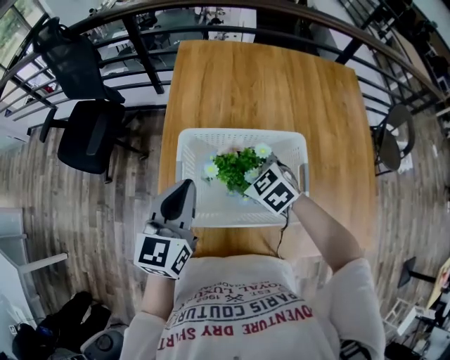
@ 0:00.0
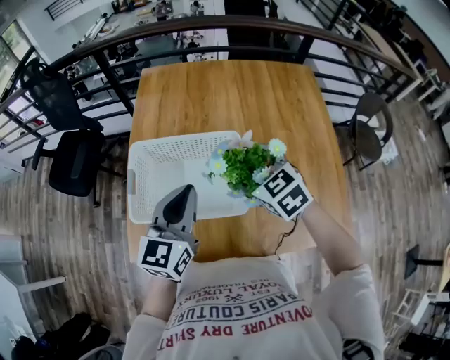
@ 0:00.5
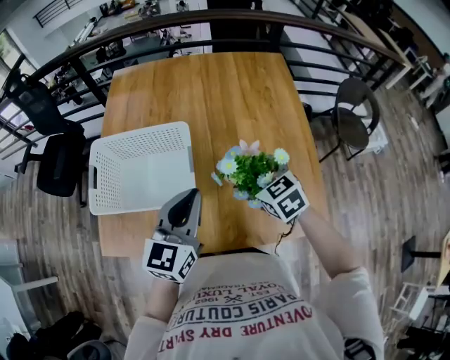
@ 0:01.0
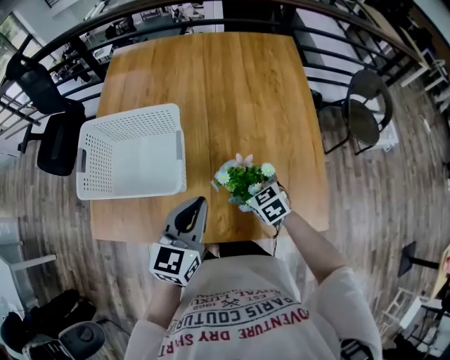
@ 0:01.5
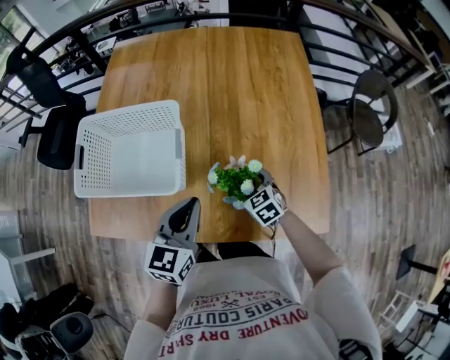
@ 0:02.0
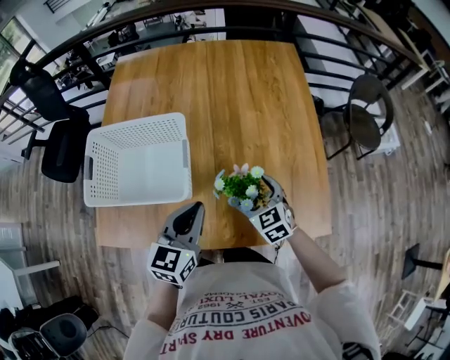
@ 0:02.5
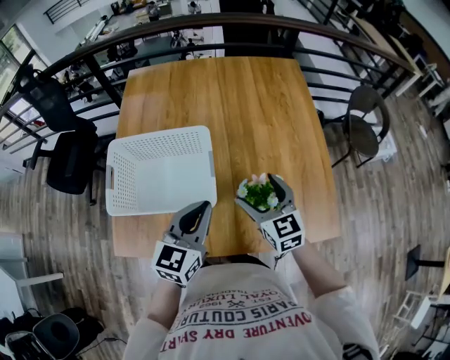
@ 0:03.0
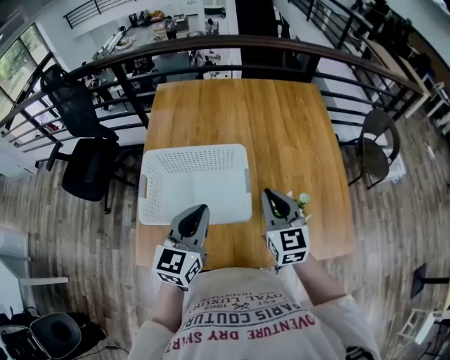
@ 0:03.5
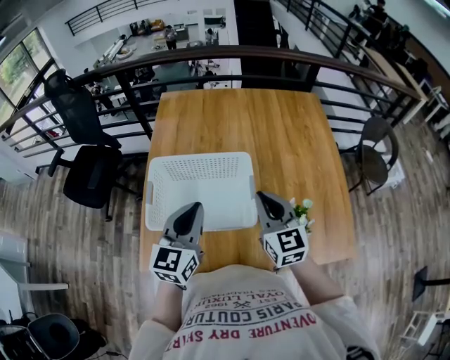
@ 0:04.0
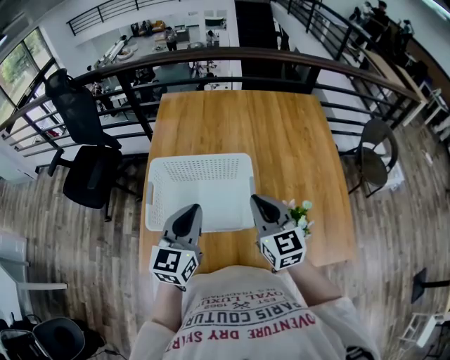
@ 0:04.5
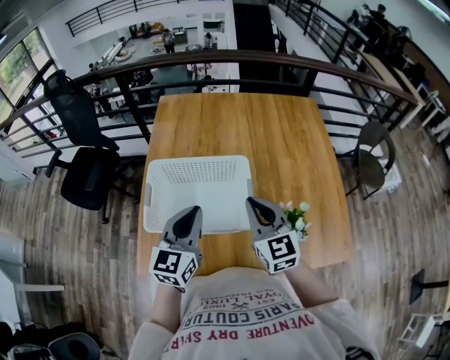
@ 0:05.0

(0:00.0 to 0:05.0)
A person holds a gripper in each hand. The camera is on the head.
0:00.0 - 0:02.5: Both grippers travel together to the right and backward, roughly 35 cm. The right gripper turns by some 20 degrees.
0:02.5 - 0:05.0: The left gripper shifts about 20 cm to the left and upward. Meanwhile the right gripper shifts approximately 30 cm upward and to the left, changes its angle by some 30 degrees, and closes.

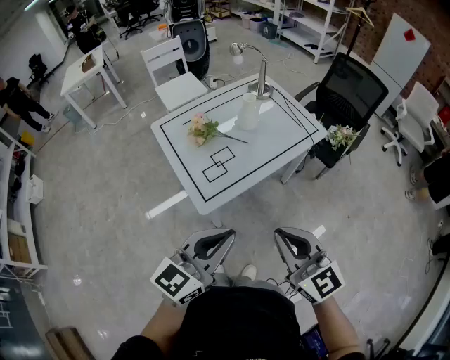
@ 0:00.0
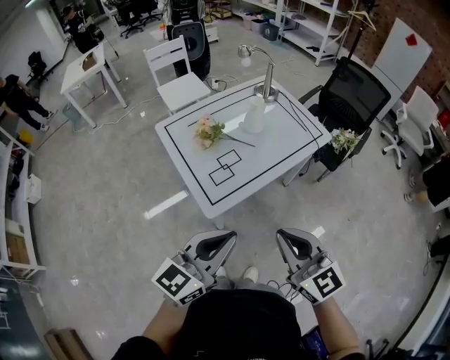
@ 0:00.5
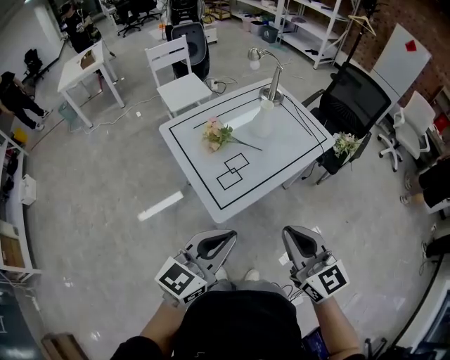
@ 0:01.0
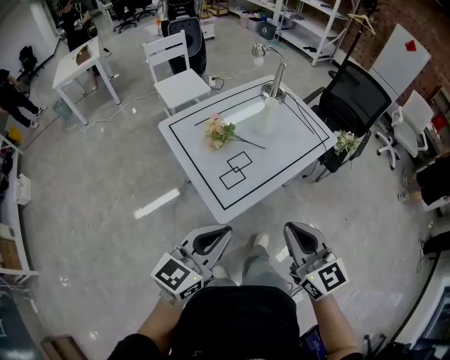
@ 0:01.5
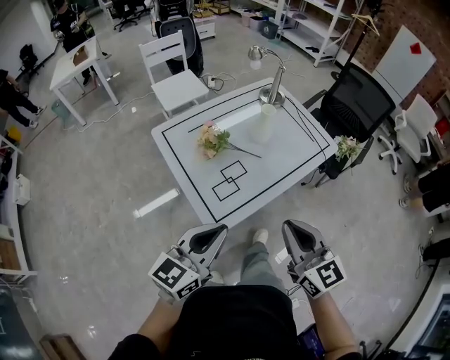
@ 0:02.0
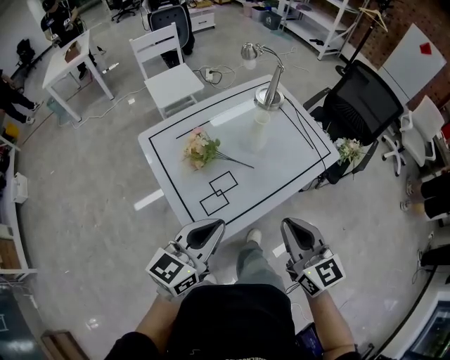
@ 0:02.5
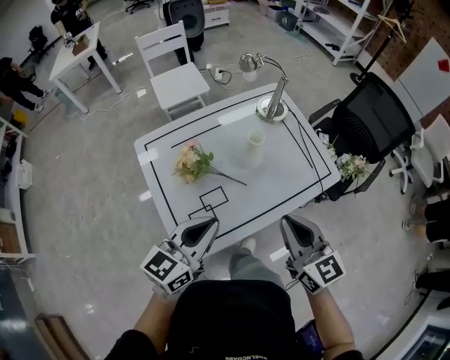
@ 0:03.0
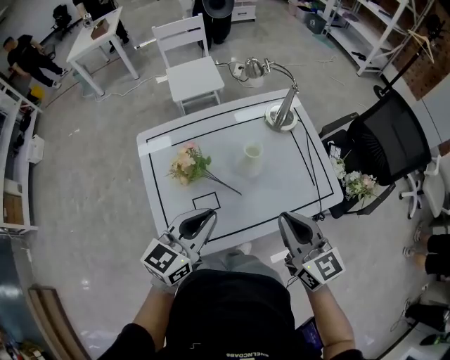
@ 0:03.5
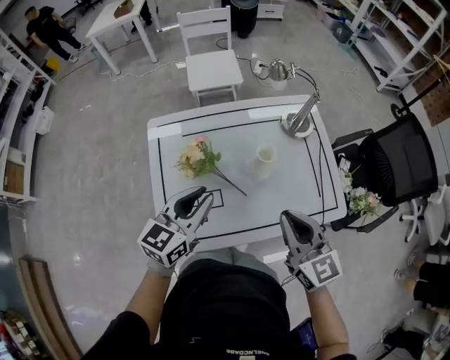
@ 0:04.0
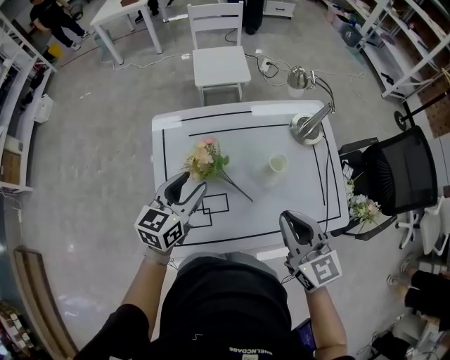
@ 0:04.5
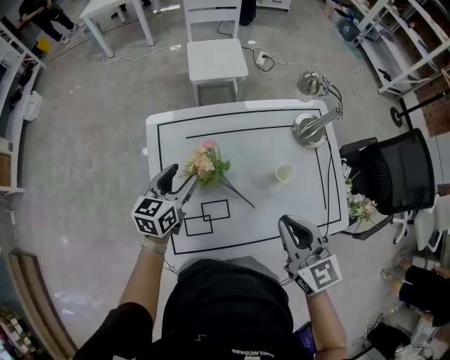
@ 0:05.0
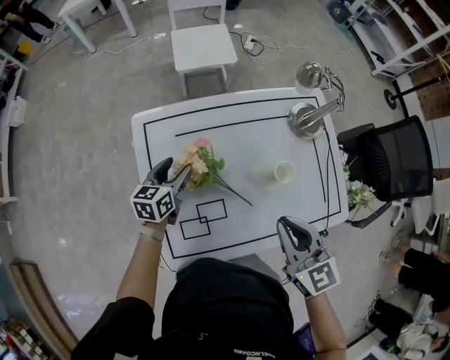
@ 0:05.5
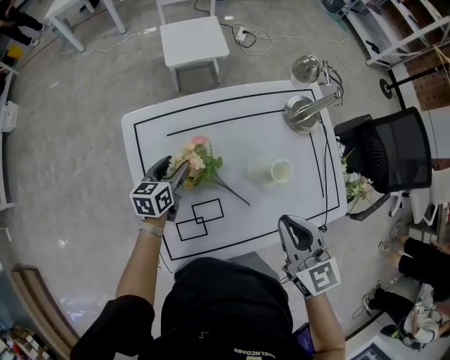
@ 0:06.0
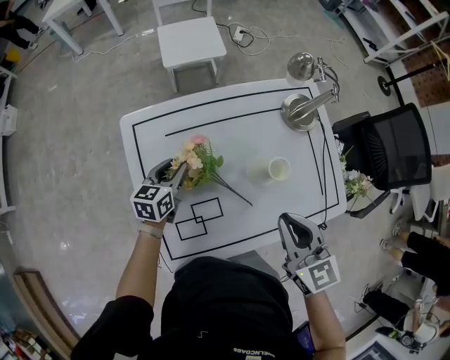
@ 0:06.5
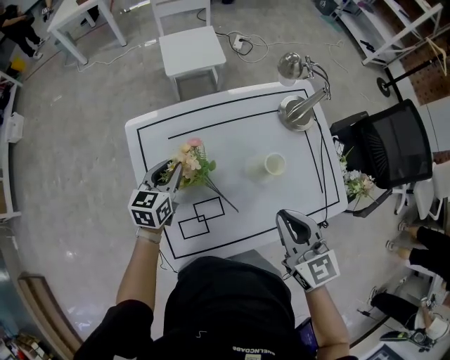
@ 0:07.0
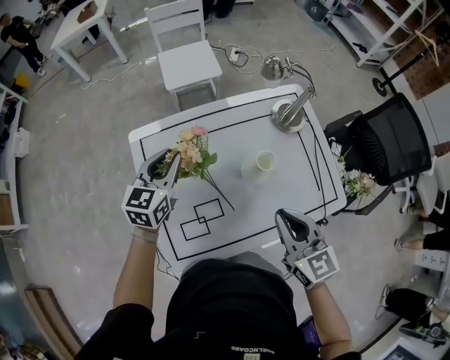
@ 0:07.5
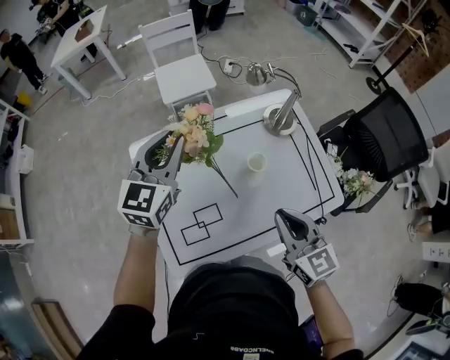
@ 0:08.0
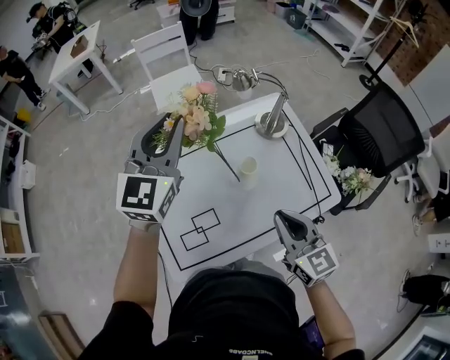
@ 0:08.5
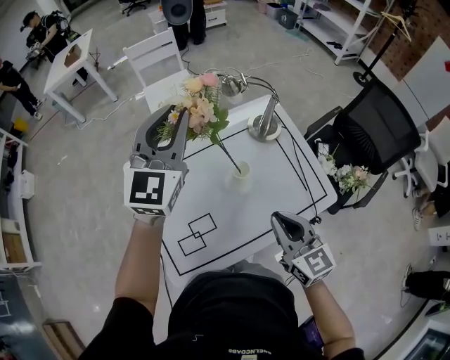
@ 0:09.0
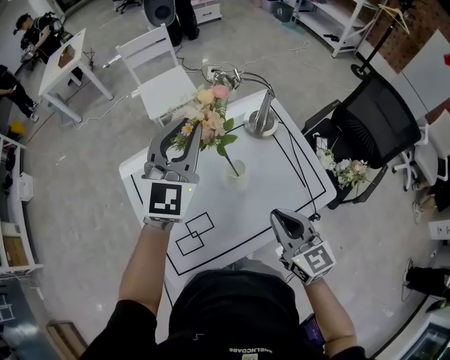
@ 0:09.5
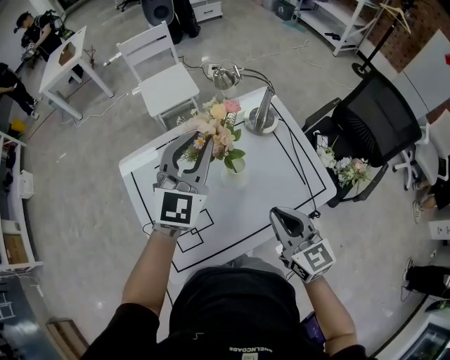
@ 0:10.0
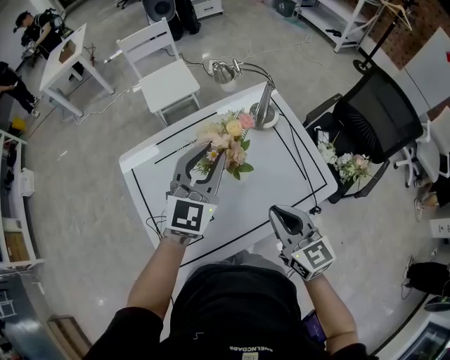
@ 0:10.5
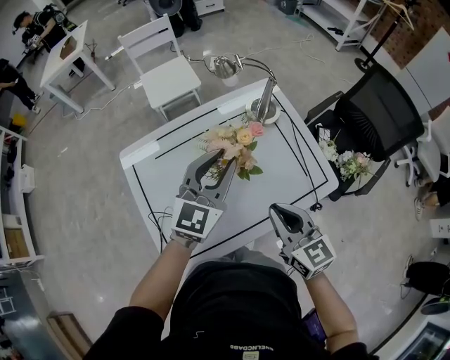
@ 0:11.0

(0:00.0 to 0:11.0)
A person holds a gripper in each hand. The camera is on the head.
0:00.0 - 0:02.0: The left gripper goes some 15 cm to the left, forward and downward. Meanwhile the right gripper moves forward and to the left, some 15 cm.
0:02.0 - 0:03.5: The grippers both shift forward and to the right by some 30 cm.
0:03.5 - 0:05.5: The right gripper goes some 10 cm forward and to the left. Meanwhile the left gripper shifts some 35 cm forward, downward and to the left, rotates approximately 30 degrees, and opens up.
0:05.5 - 0:07.5: The left gripper shifts about 15 cm upward, rotates roughly 20 degrees, and closes up.
0:07.5 - 0:09.0: The right gripper changes place by about 5 cm. Meanwhile the left gripper goes some 25 cm upward and to the right, and changes its angle by roughly 30 degrees.
0:09.0 - 0:11.0: The left gripper goes approximately 20 cm downward, backward and to the right.

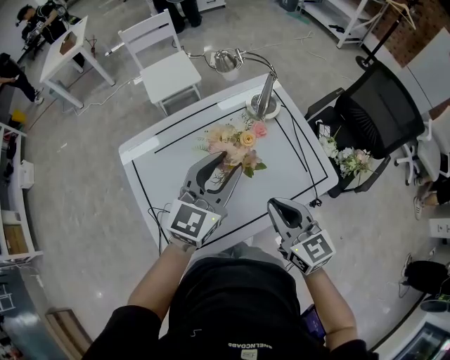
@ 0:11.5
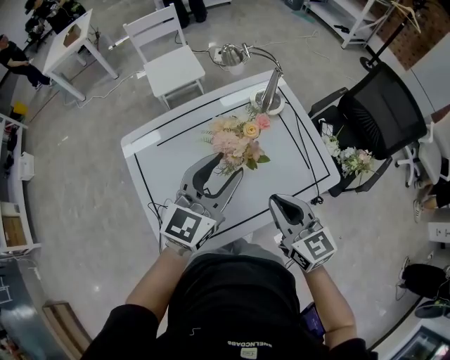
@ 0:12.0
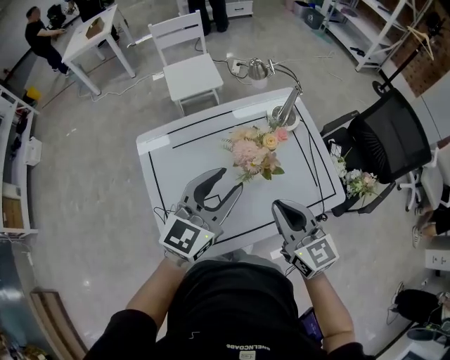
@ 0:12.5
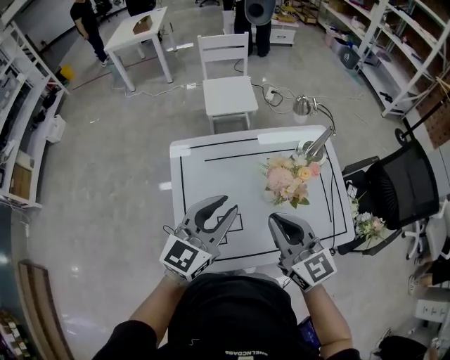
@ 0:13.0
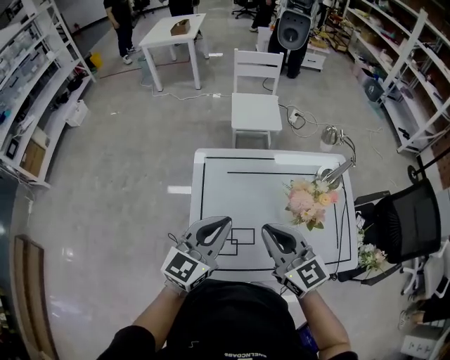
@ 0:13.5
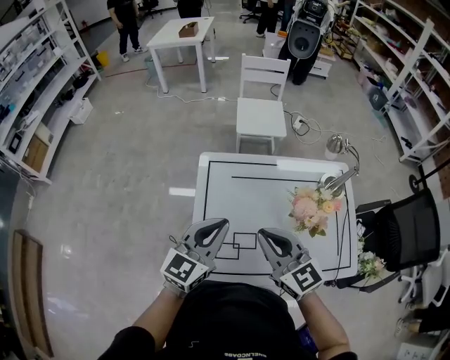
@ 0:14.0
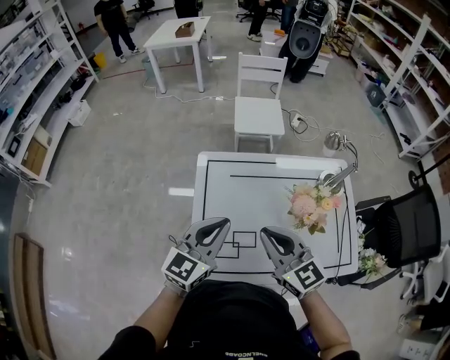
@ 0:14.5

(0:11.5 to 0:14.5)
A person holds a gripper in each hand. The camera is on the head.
0:11.5 - 0:13.0: The right gripper travels to the left and upward by some 15 cm, and rotates roughly 20 degrees. Meanwhile the left gripper shifts approximately 15 cm to the left and backward.
0:13.0 - 0:14.5: Both grippers travel together to the left, about 10 cm. The left gripper closes up.

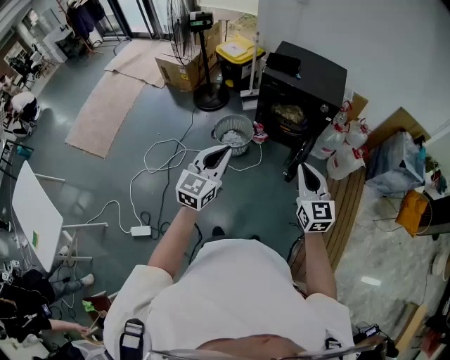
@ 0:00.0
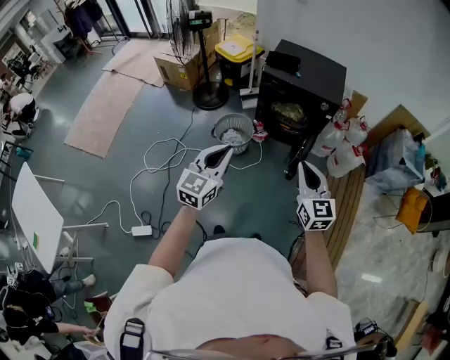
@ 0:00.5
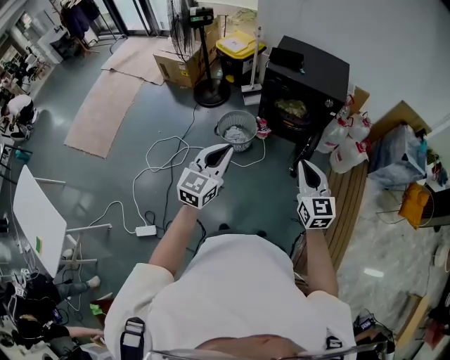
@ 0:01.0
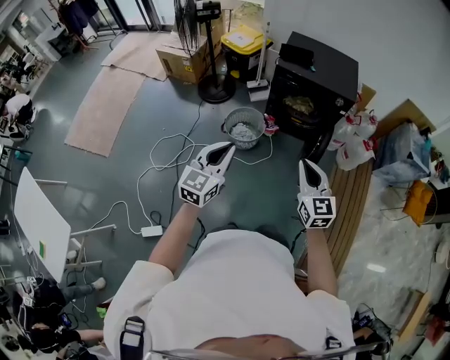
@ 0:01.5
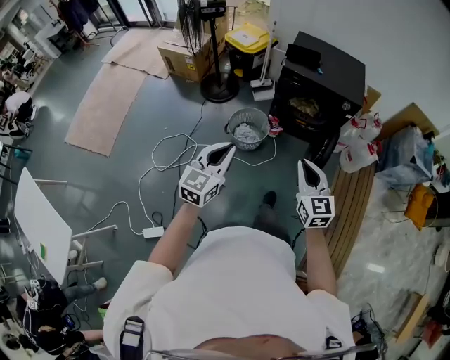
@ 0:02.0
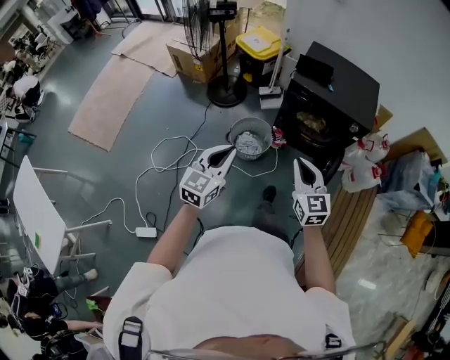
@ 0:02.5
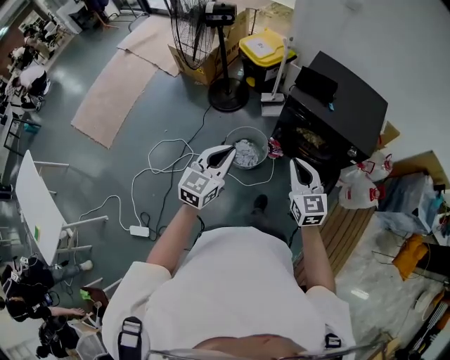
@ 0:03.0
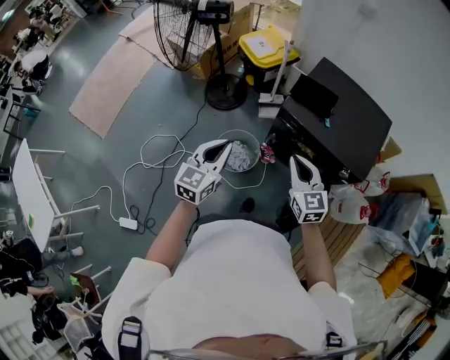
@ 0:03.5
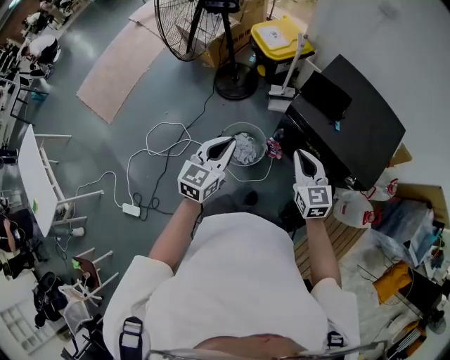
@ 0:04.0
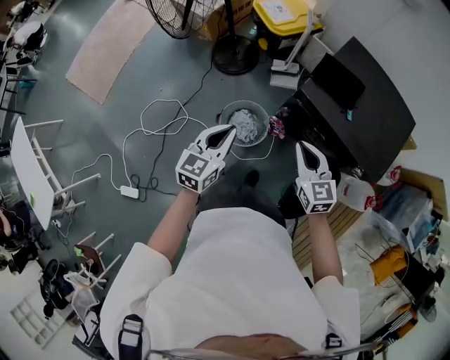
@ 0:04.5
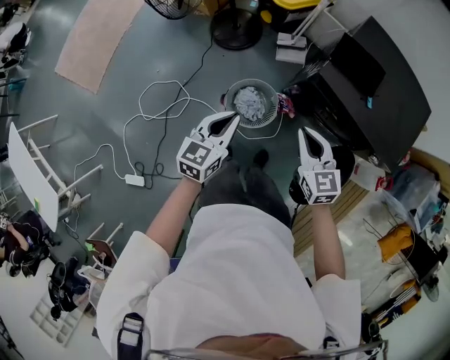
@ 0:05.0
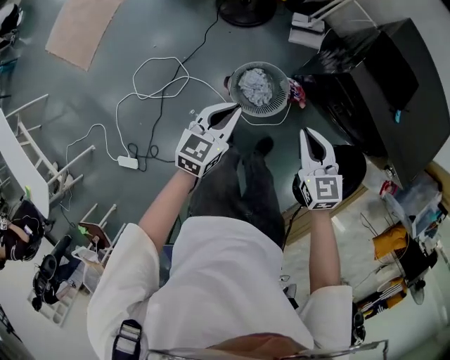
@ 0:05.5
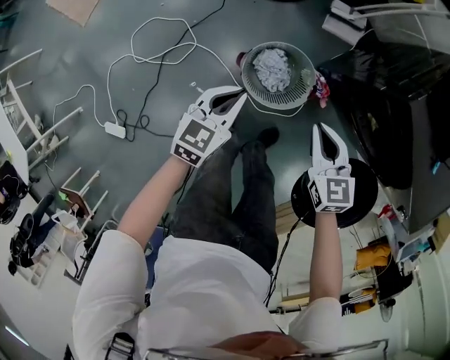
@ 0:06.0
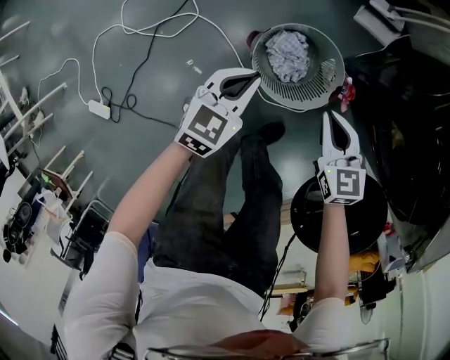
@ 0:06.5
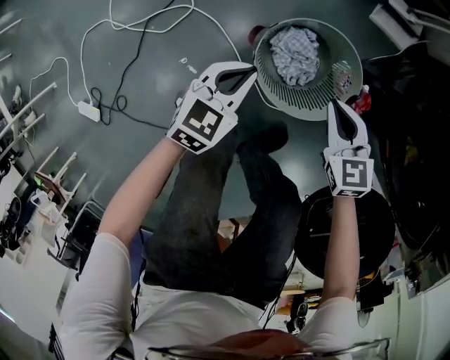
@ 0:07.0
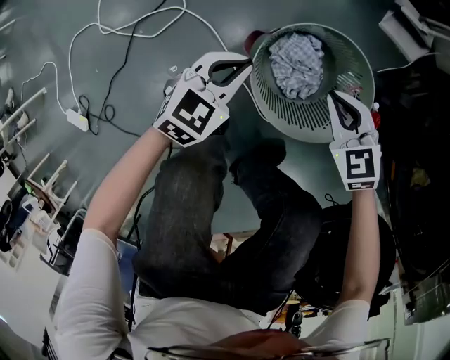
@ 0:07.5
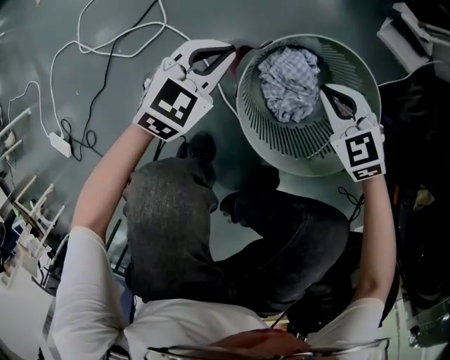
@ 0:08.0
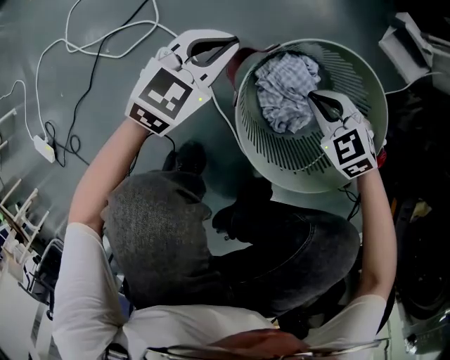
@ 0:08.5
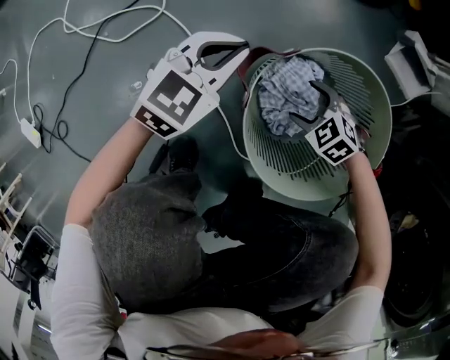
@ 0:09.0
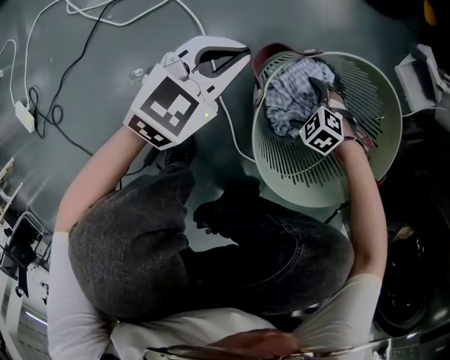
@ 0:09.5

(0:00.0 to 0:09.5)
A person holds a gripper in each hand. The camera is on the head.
0:00.0 - 0:02.0: The left gripper travels to the left and forward by about 15 cm; the right gripper shifts about 15 cm to the left.
0:02.0 - 0:04.0: The two grippers travel together, forward, approximately 50 cm. The left gripper changes its angle by approximately 20 degrees, while the right gripper turns by approximately 20 degrees.
0:04.0 - 0:05.5: The right gripper travels downward and to the left by roughly 25 cm. Meanwhile the left gripper shifts some 30 cm downward, to the left and forward.
0:05.5 - 0:07.5: Both grippers travel together downward, approximately 50 cm. The right gripper changes its angle by roughly 40 degrees.
0:07.5 - 0:09.5: The left gripper shifts some 15 cm downward. Meanwhile the right gripper goes about 35 cm downward, rotates roughly 50 degrees, and opens up.
